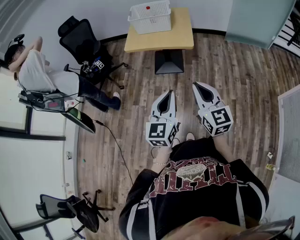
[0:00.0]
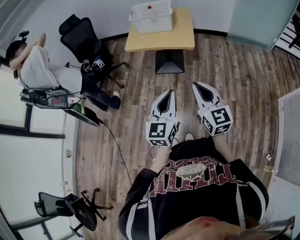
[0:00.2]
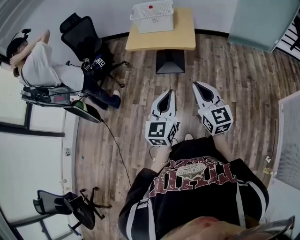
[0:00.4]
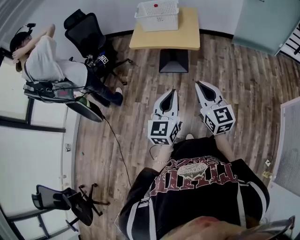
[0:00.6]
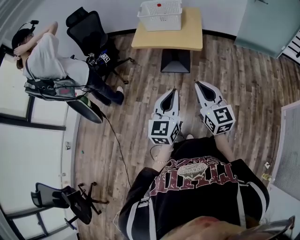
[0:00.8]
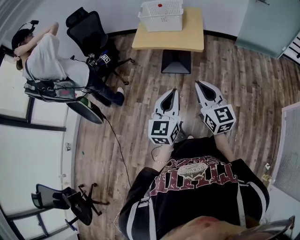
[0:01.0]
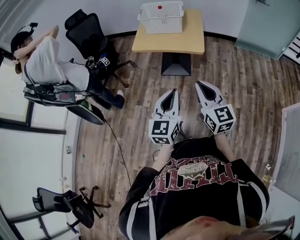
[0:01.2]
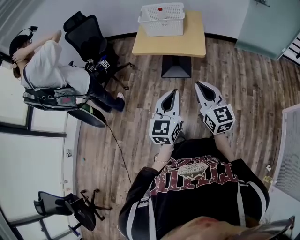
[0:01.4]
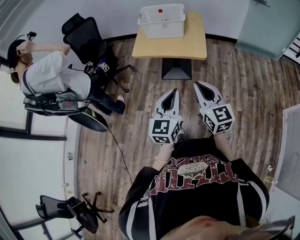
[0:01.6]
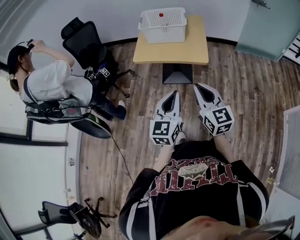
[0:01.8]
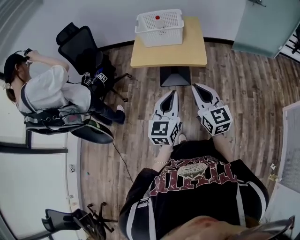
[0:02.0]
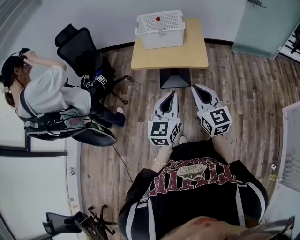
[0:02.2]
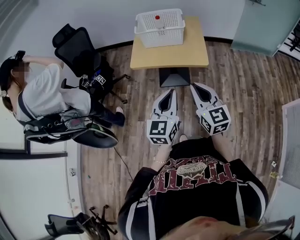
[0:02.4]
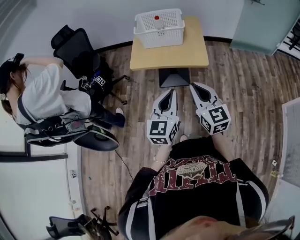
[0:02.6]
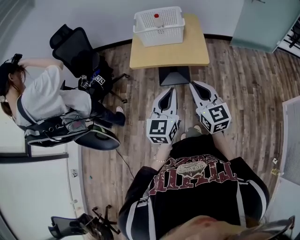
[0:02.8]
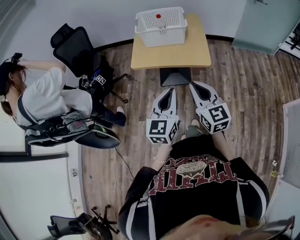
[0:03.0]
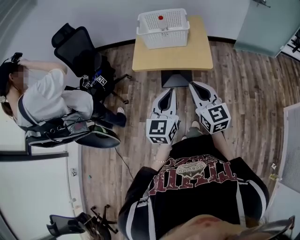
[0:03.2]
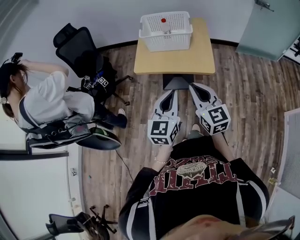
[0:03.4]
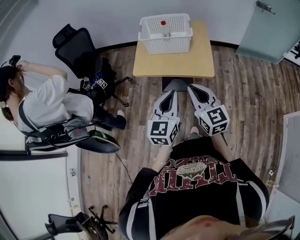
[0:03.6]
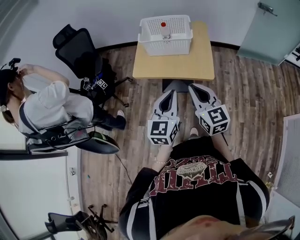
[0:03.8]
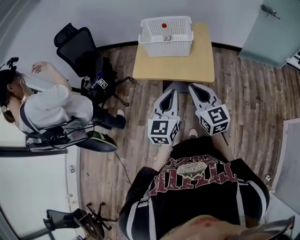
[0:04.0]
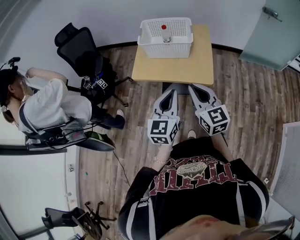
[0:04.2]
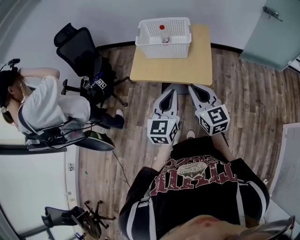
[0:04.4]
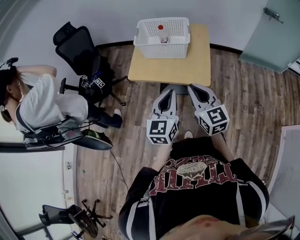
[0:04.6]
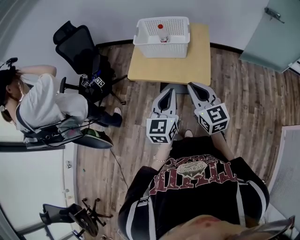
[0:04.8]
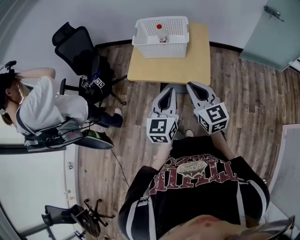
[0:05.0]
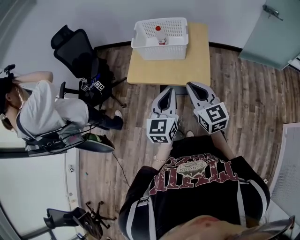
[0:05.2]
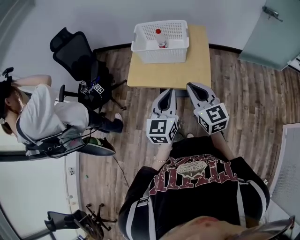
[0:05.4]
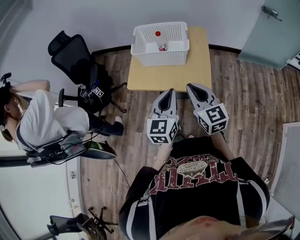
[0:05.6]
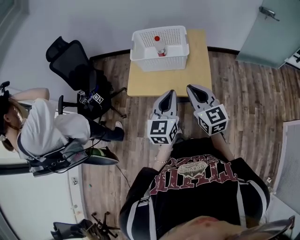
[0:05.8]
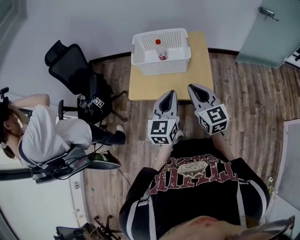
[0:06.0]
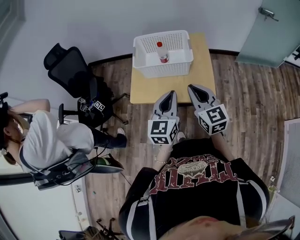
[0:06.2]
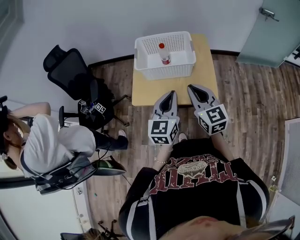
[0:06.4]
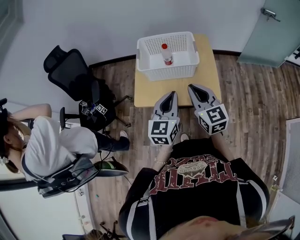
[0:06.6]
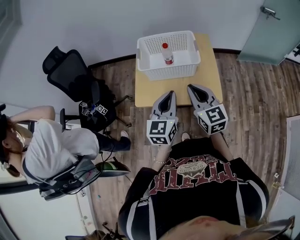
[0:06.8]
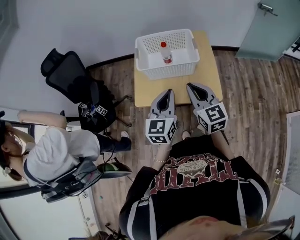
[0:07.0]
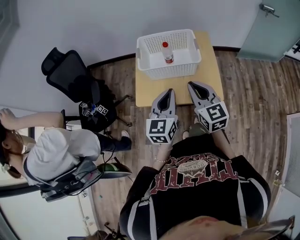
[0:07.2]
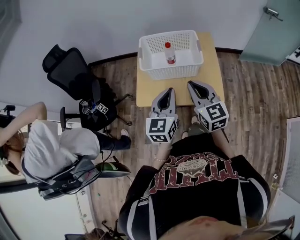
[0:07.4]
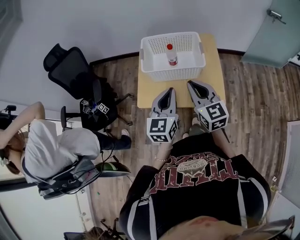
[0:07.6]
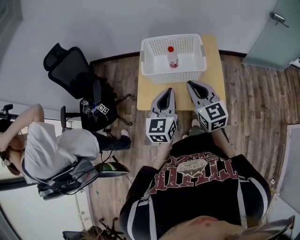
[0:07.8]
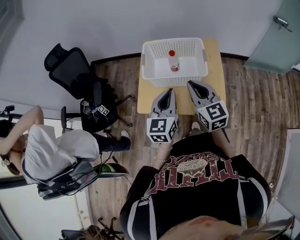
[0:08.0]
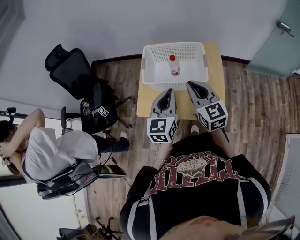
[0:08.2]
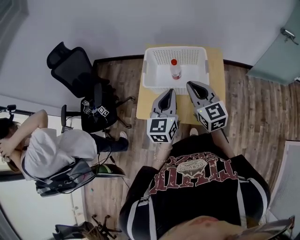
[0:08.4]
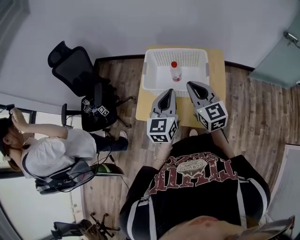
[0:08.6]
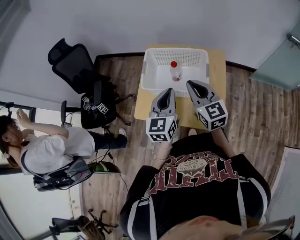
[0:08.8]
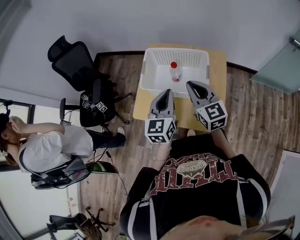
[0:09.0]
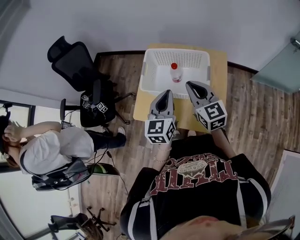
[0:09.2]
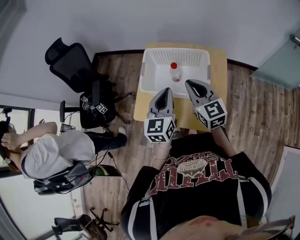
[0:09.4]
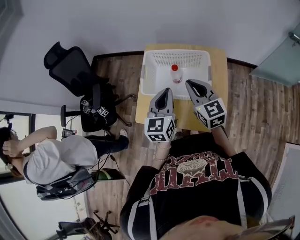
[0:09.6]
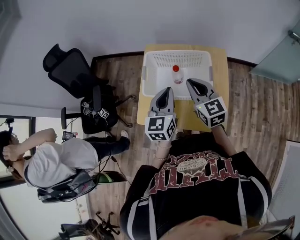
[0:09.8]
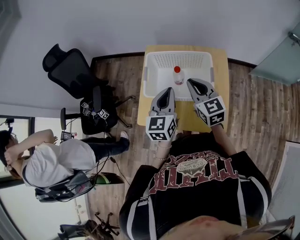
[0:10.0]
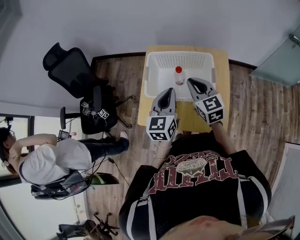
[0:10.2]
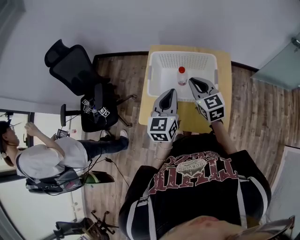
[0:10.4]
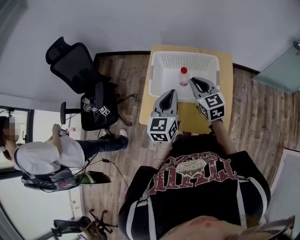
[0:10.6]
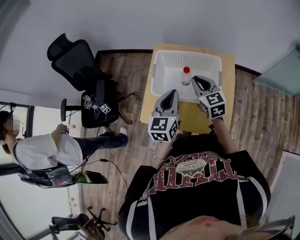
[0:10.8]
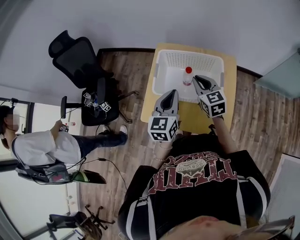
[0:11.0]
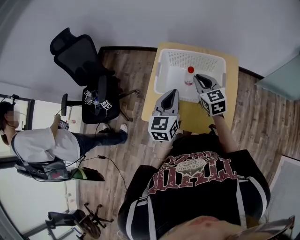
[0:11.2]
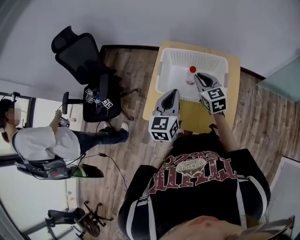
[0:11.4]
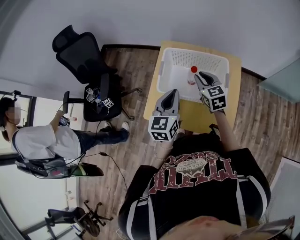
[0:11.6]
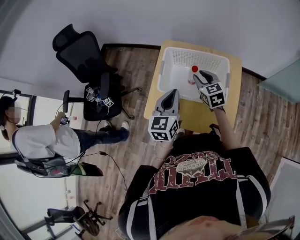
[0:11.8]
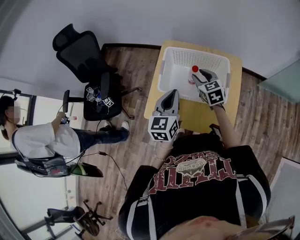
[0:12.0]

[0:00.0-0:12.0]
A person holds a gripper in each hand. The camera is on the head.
0:00.0 to 0:01.6: The two grippers go approximately 15 cm forward.
0:01.6 to 0:03.0: Both grippers move forward and to the left, some 15 cm.
0:03.0 to 0:04.4: Both grippers travel together forward and to the right, about 15 cm.
0:04.4 to 0:06.0: Both grippers move forward, approximately 15 cm.
0:06.0 to 0:07.6: Both grippers move forward and to the left, approximately 10 cm.
0:07.6 to 0:09.0: The grippers both shift forward by roughly 15 cm.
0:09.0 to 0:10.4: The right gripper is displaced forward by about 5 cm. Meanwhile the left gripper ends up roughly 5 cm from where it was.
0:10.4 to 0:12.0: The right gripper goes roughly 10 cm downward and forward, and opens up.

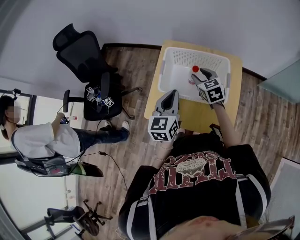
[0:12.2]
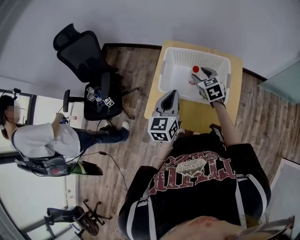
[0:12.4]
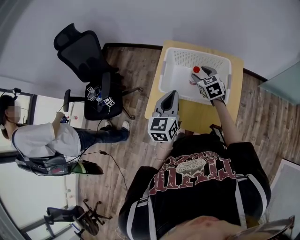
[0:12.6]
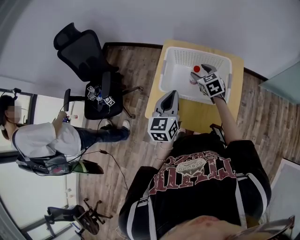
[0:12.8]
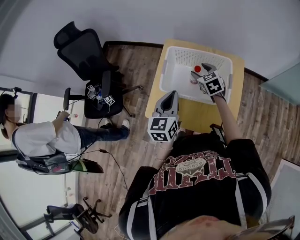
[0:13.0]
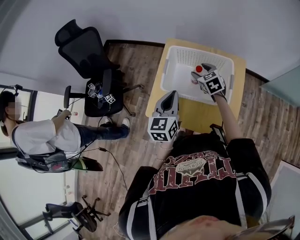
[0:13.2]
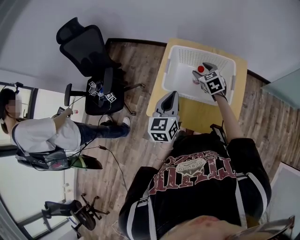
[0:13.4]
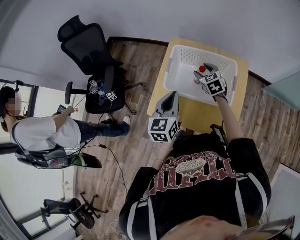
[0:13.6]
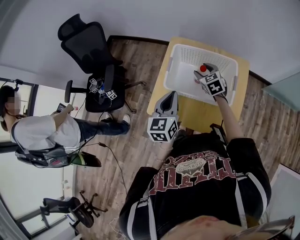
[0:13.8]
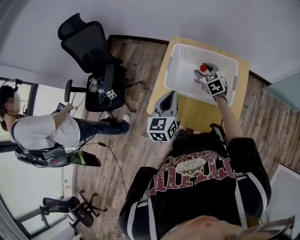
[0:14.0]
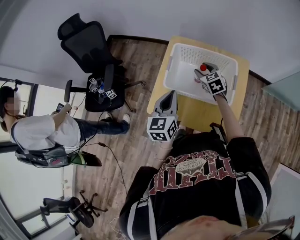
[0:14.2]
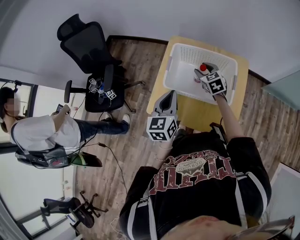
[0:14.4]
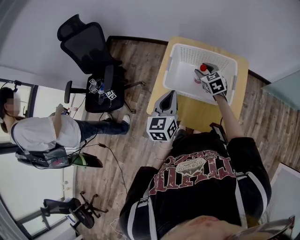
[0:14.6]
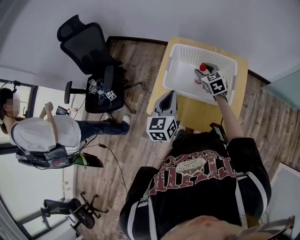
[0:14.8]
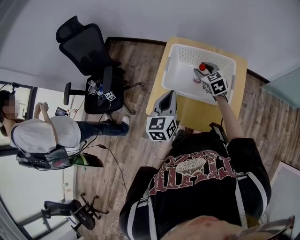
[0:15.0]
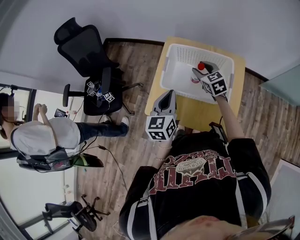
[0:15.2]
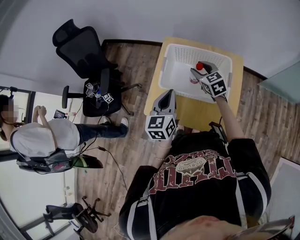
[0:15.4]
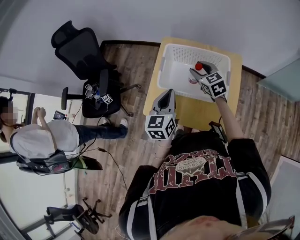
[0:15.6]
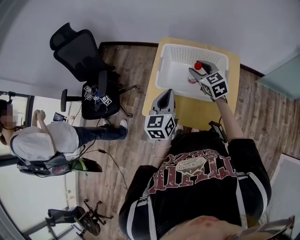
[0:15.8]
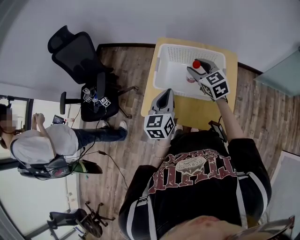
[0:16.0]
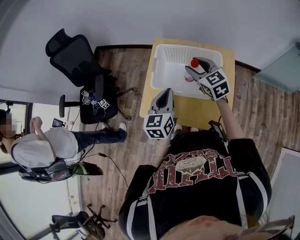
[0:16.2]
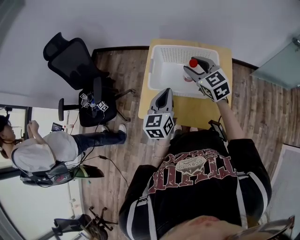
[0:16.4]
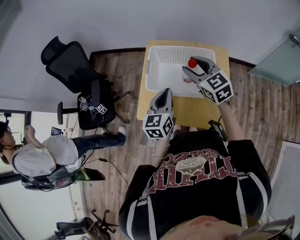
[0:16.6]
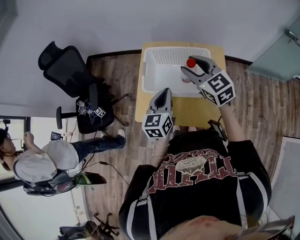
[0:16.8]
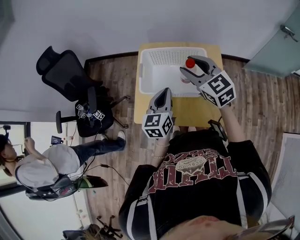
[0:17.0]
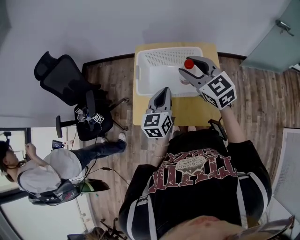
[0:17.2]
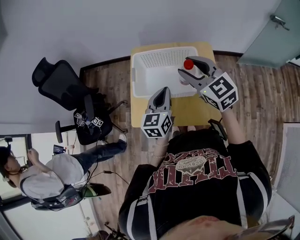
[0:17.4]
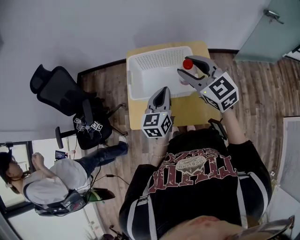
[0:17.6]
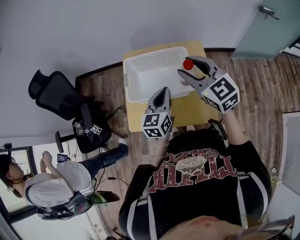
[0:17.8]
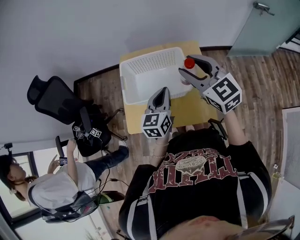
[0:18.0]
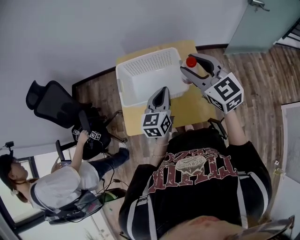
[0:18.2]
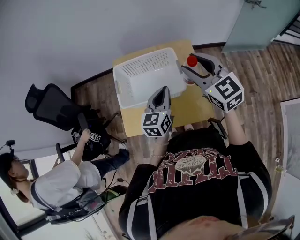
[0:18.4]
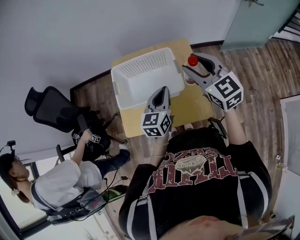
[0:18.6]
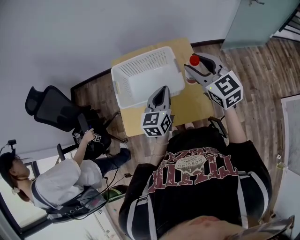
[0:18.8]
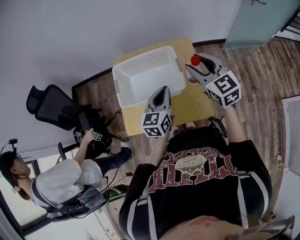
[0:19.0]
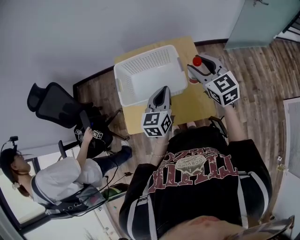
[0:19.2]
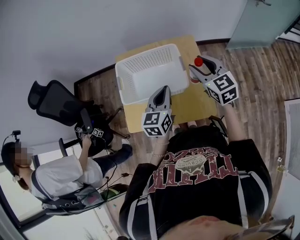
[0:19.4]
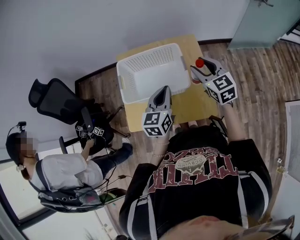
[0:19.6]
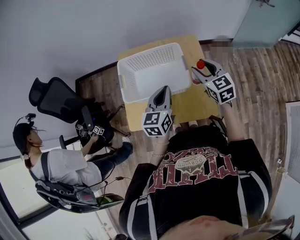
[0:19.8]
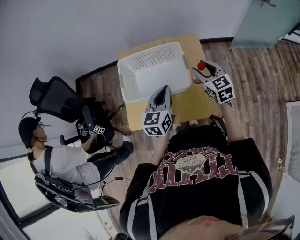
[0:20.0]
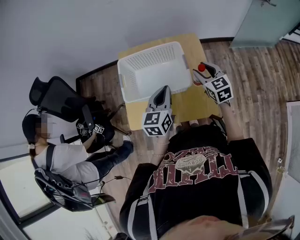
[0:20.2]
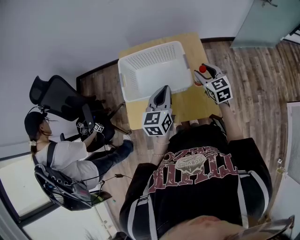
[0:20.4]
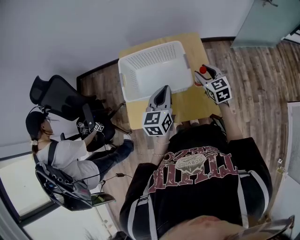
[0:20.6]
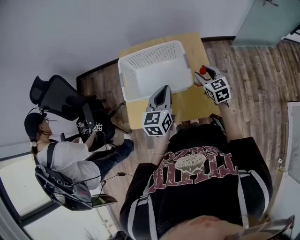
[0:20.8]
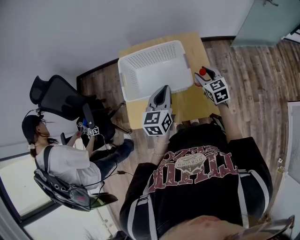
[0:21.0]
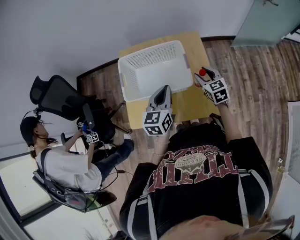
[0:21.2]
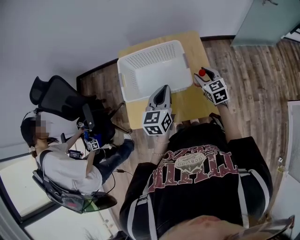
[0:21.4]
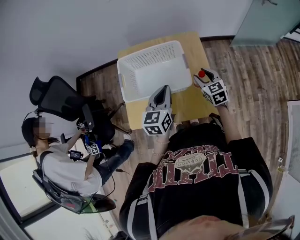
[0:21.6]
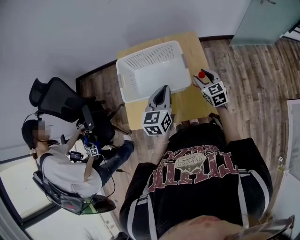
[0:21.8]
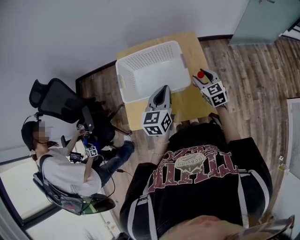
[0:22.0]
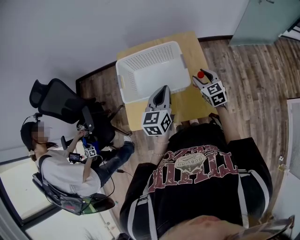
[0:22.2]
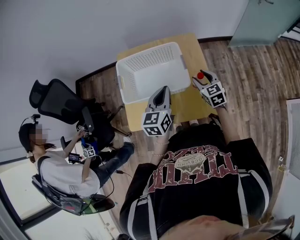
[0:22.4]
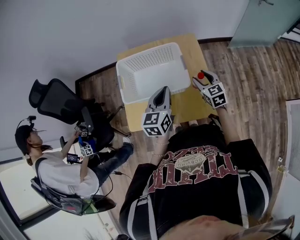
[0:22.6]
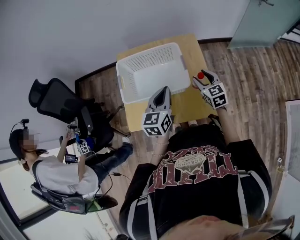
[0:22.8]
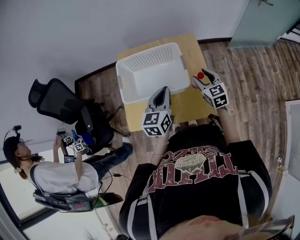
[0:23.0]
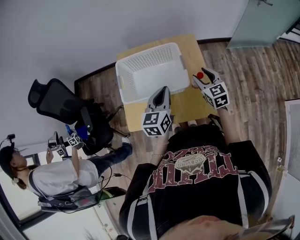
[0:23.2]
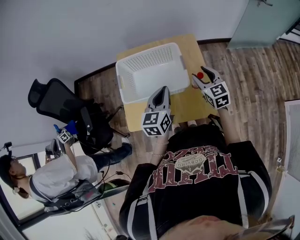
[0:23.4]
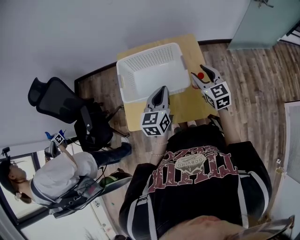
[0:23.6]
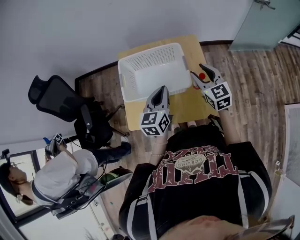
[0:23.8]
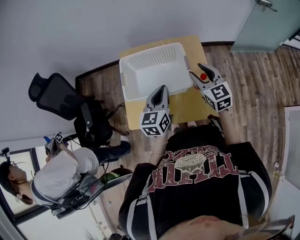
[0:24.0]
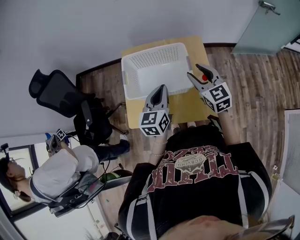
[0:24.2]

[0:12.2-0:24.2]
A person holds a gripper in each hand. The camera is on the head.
0:12.2 to 0:13.8: The right gripper moves about 5 cm.
0:13.8 to 0:15.2: There are only small adjustments of the grippers.
0:15.2 to 0:16.6: The right gripper shifts some 15 cm upward and backward. Meanwhile the left gripper moves some 5 cm.
0:16.6 to 0:18.2: The left gripper moves to the right, some 10 cm. Meanwhile the right gripper is displaced to the right, upward and backward by roughly 15 cm.
0:18.2 to 0:19.8: The right gripper travels downward by approximately 15 cm.
0:19.8 to 0:21.2: The right gripper goes some 10 cm downward.
0:21.2 to 0:22.6: The two grippers keep their place.
0:22.6 to 0:24.2: The right gripper moves upward and to the left, some 15 cm.
